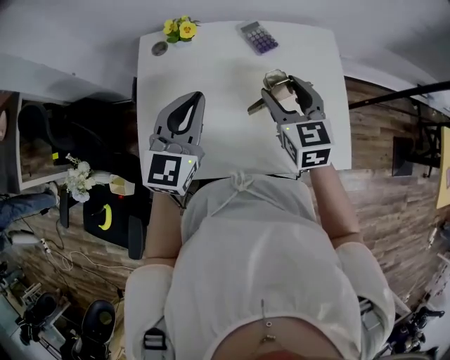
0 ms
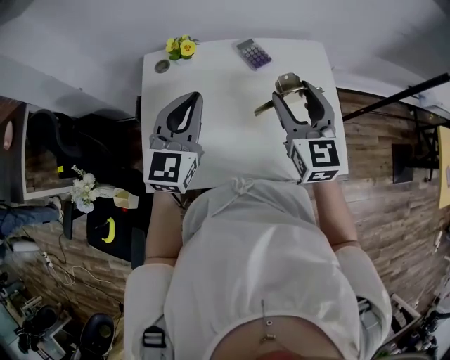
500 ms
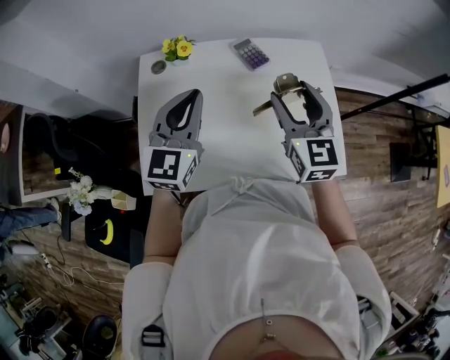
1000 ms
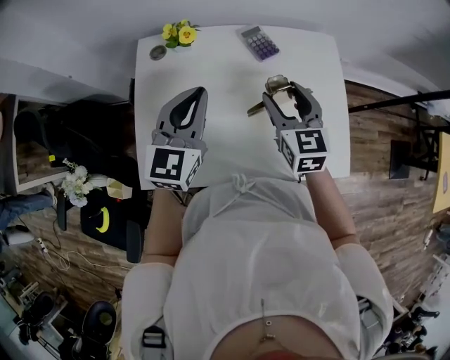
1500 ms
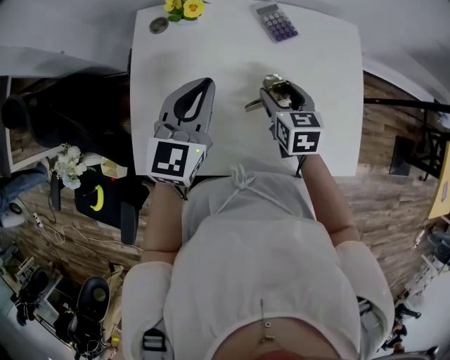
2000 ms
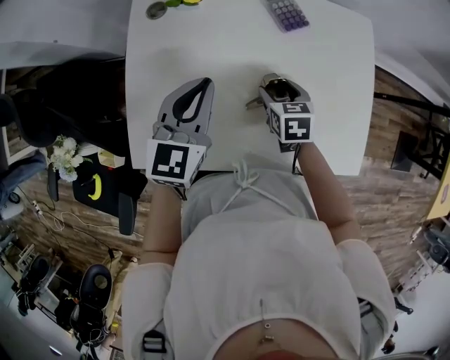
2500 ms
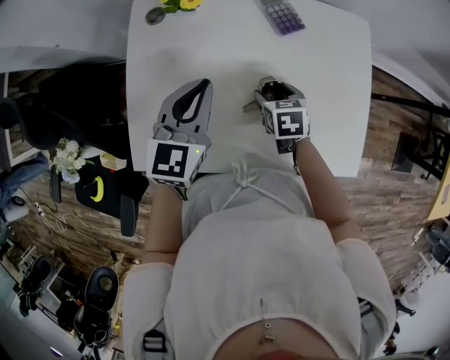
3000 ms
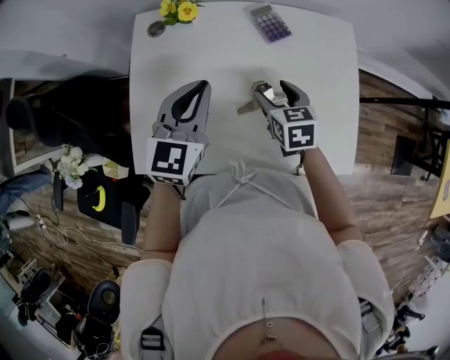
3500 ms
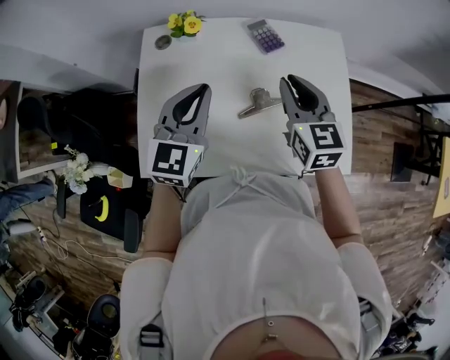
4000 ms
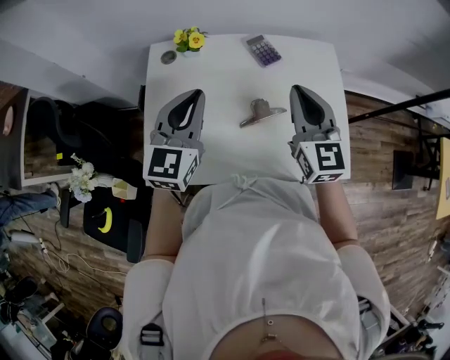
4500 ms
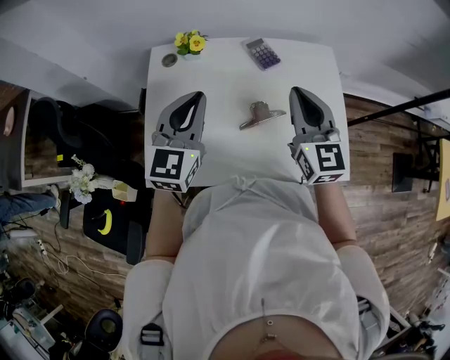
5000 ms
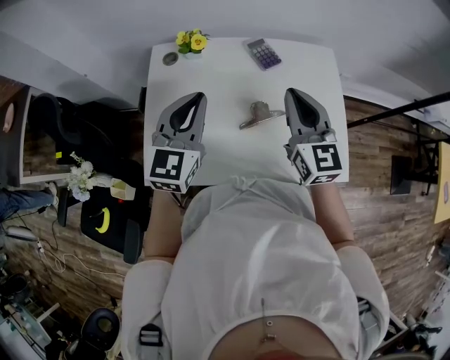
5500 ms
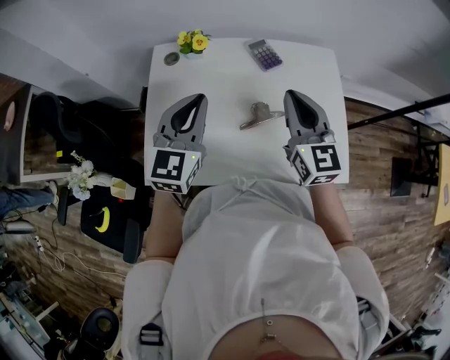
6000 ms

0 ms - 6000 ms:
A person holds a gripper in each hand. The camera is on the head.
0 ms - 2000 ms: The right gripper goes roughly 15 cm downward, and turns by some 20 degrees. The left gripper is displaced downward by approximately 5 cm.
2000 ms - 4000 ms: The right gripper travels upward by about 15 cm, rotates some 20 degrees, and closes. The left gripper ends up approximately 5 cm from where it was.
4000 ms - 6000 ms: The right gripper is displaced upward by roughly 5 cm.

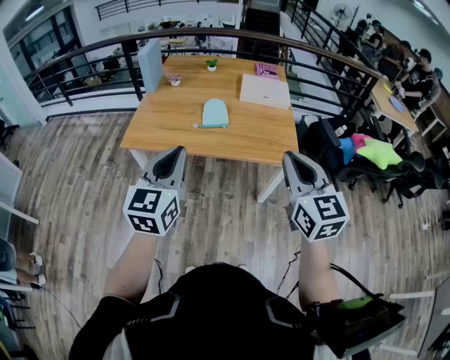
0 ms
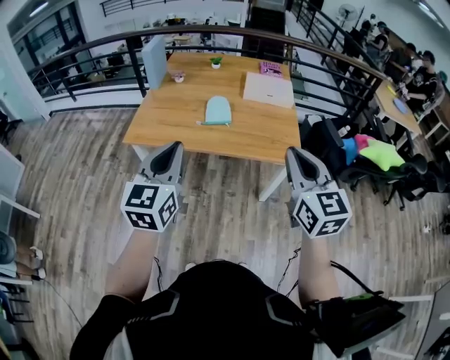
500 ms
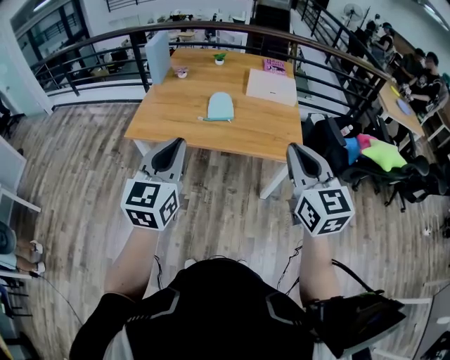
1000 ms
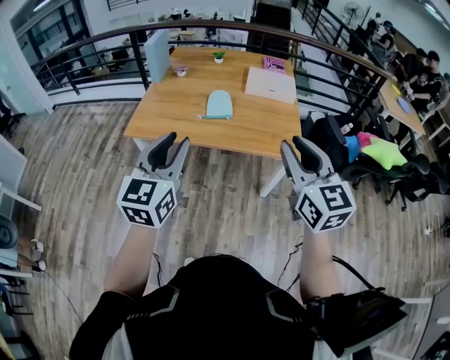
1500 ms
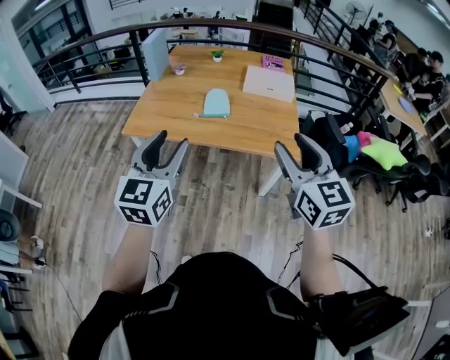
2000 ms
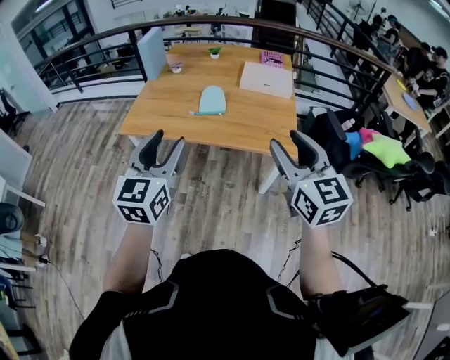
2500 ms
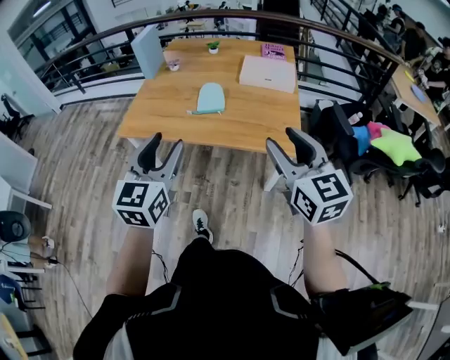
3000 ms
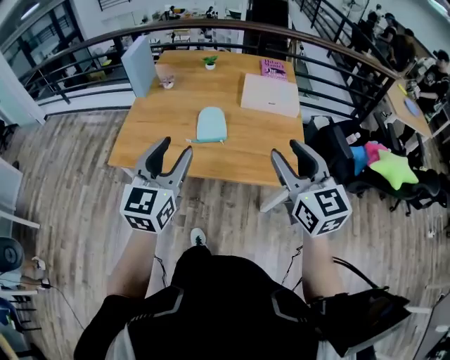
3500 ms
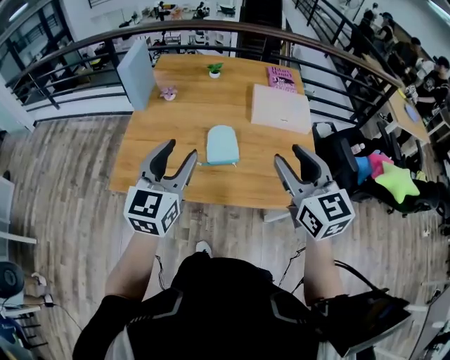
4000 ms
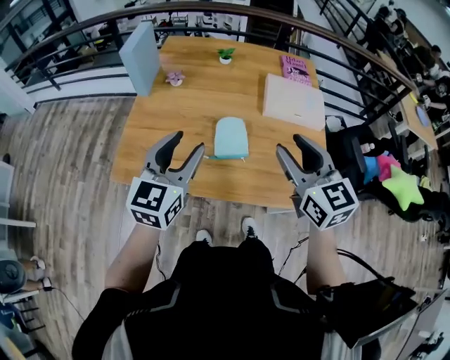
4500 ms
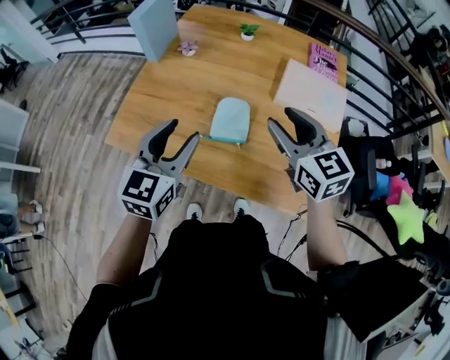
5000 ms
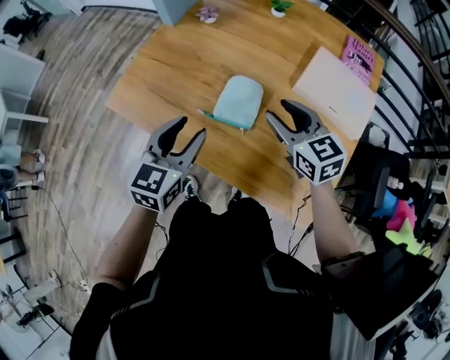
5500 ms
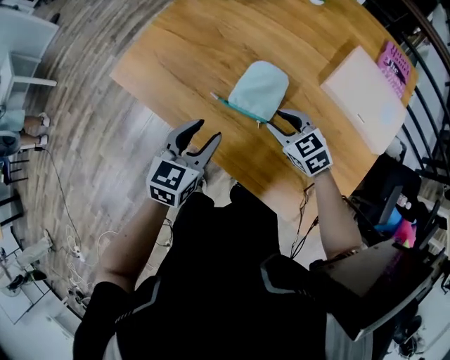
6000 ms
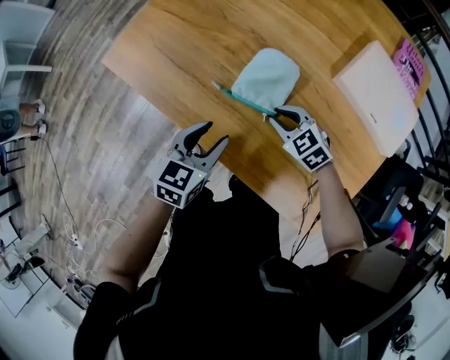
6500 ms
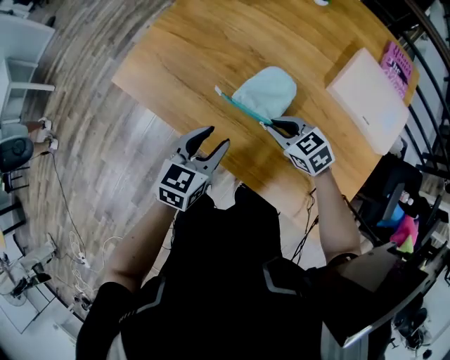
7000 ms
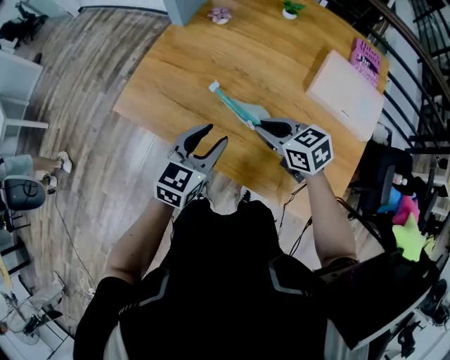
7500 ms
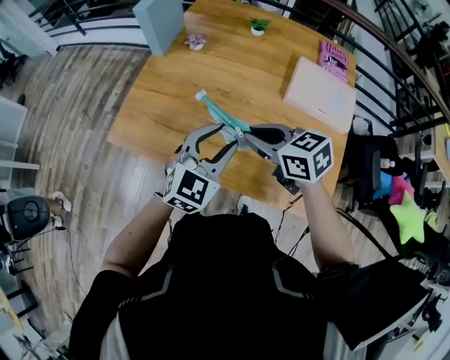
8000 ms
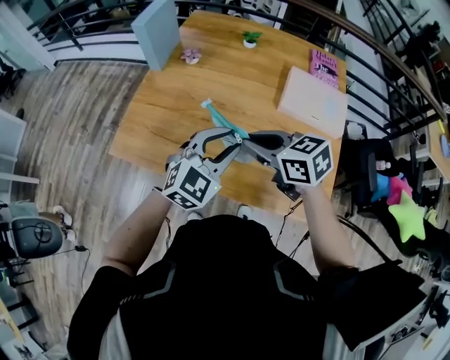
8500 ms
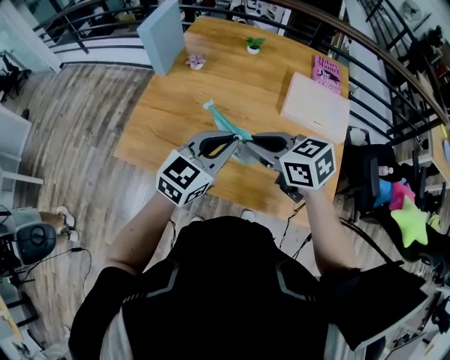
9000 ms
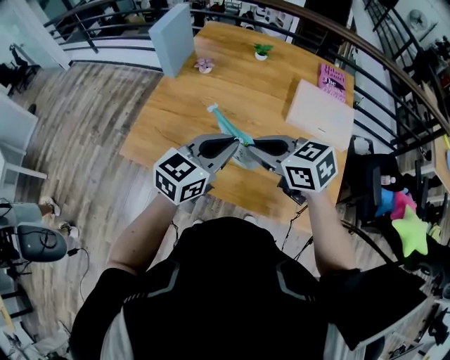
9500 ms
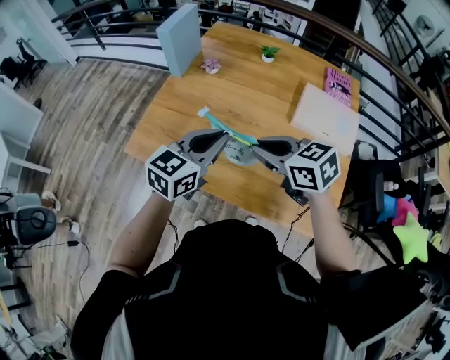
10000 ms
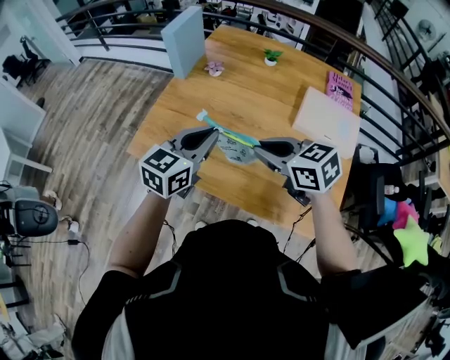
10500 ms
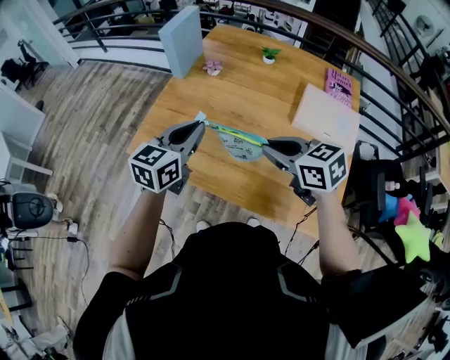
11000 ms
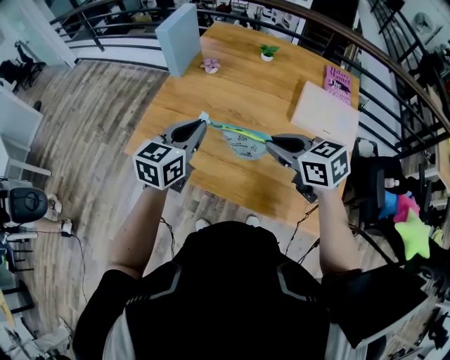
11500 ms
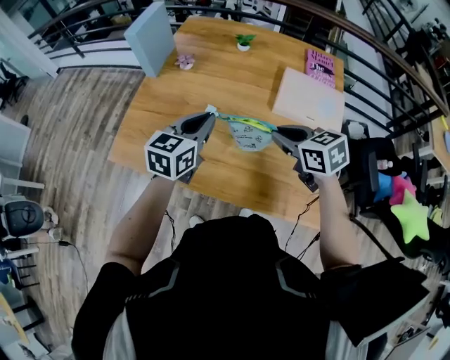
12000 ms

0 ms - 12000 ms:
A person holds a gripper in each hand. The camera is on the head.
0 ms - 2000 ms: The right gripper opens. Meanwhile the left gripper opens.
2000 ms - 4000 ms: Both grippers travel together forward, roughly 30 cm.
4000 ms - 6000 ms: Both grippers travel together downward, roughly 30 cm. The left gripper turns by some 40 degrees. Meanwhile the right gripper swivels about 60 degrees.
6000 ms - 8000 ms: The left gripper is displaced upward by approximately 15 cm, and changes its angle by approximately 40 degrees. Meanwhile the right gripper moves upward, approximately 20 cm, changes its angle by approximately 30 degrees, and closes.
8000 ms - 10000 ms: The left gripper ends up approximately 5 cm from where it was, changes its angle by some 20 degrees, and closes its fingers.
10000 ms - 12000 ms: The right gripper moves to the right, roughly 15 cm. Meanwhile the left gripper shifts approximately 5 cm forward.

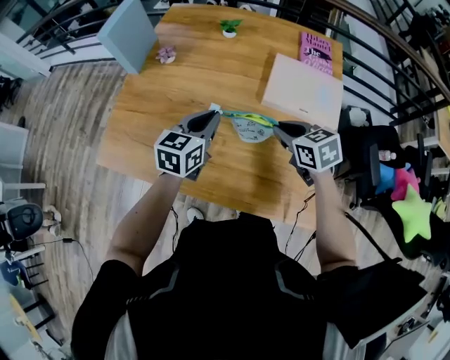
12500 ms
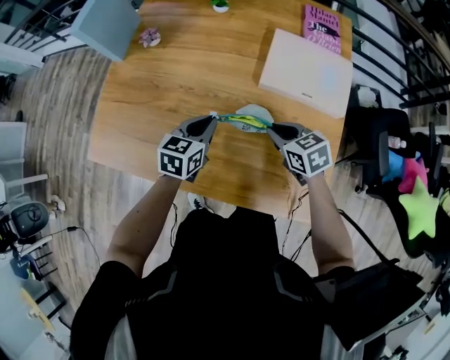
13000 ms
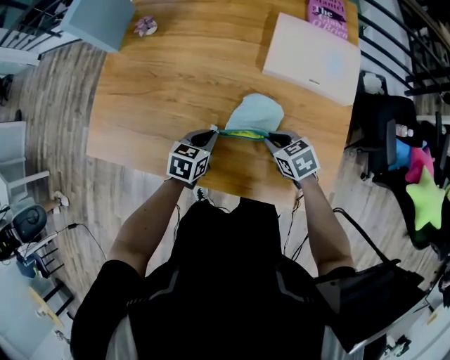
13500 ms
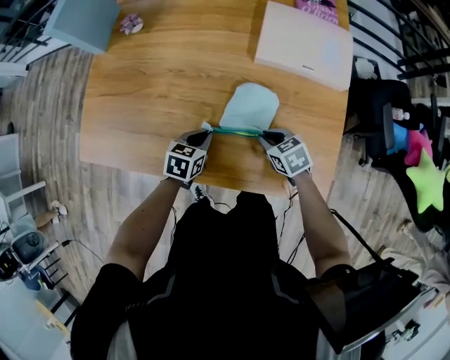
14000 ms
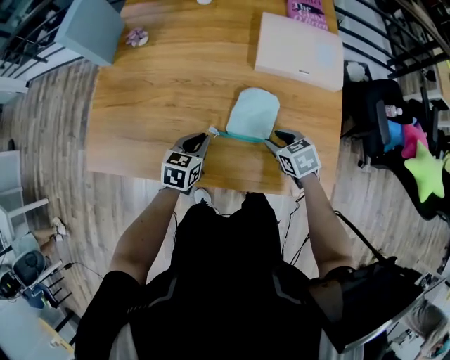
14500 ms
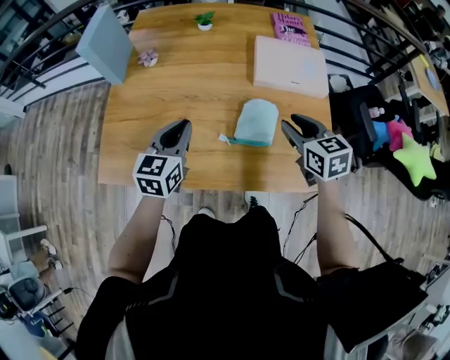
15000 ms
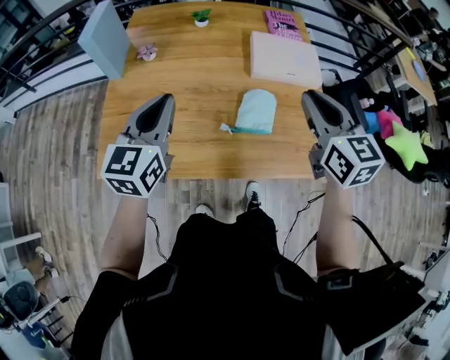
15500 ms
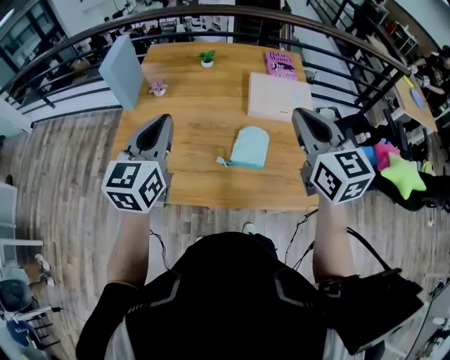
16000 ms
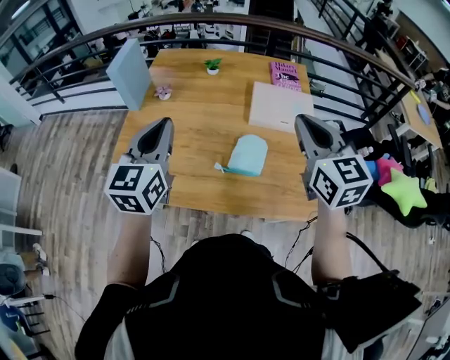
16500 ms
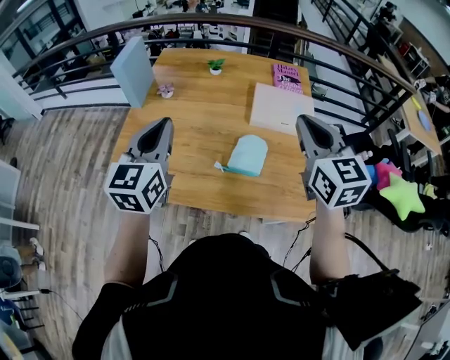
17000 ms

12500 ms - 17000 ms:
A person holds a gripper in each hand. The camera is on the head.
12500 ms - 14500 ms: Both grippers travel together downward and backward, approximately 20 cm. The right gripper opens. The left gripper turns by some 20 degrees.
14500 ms - 17000 ms: The two grippers go roughly 40 cm upward. The right gripper angles its fingers upward, by approximately 50 degrees, and closes up. Meanwhile the left gripper tilts its fingers about 40 degrees upward.

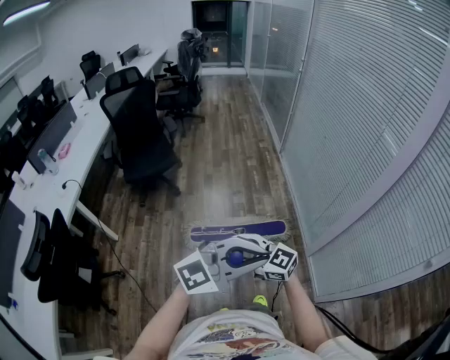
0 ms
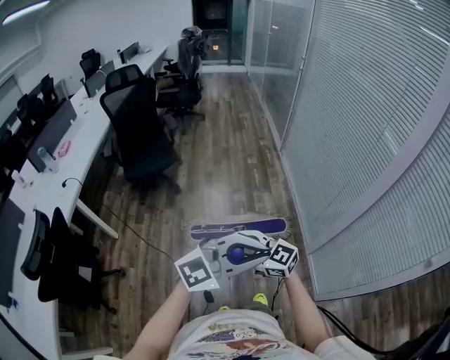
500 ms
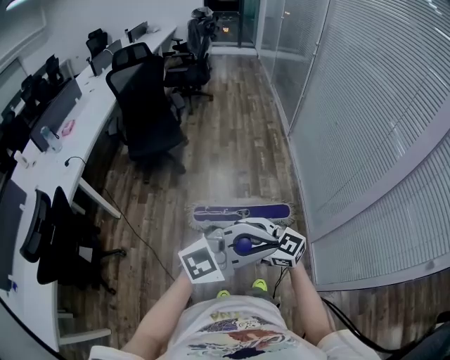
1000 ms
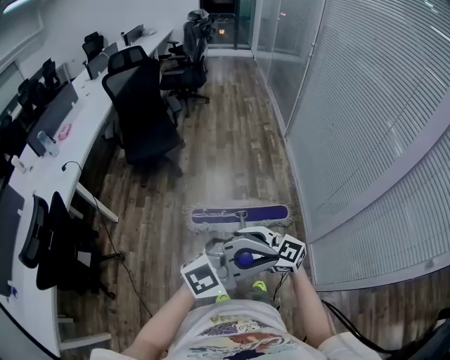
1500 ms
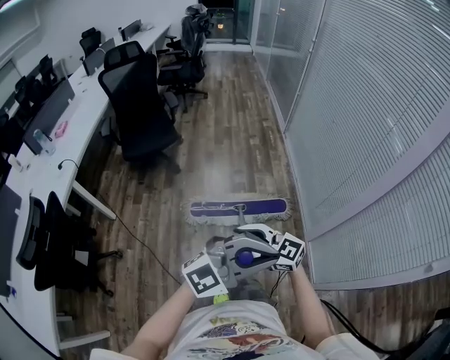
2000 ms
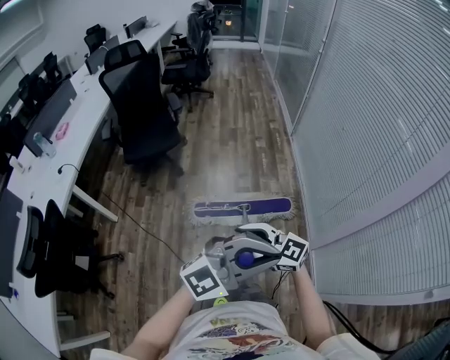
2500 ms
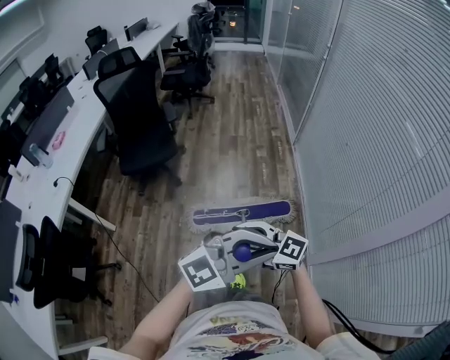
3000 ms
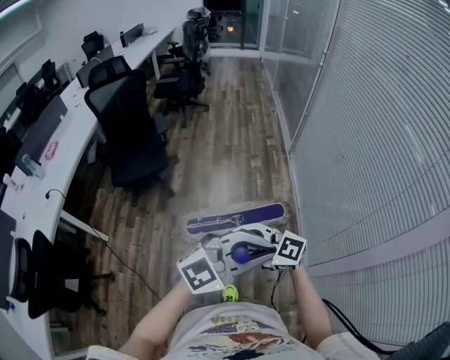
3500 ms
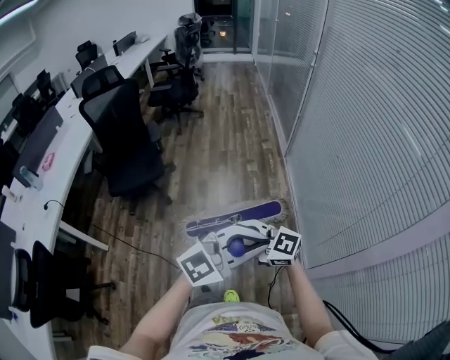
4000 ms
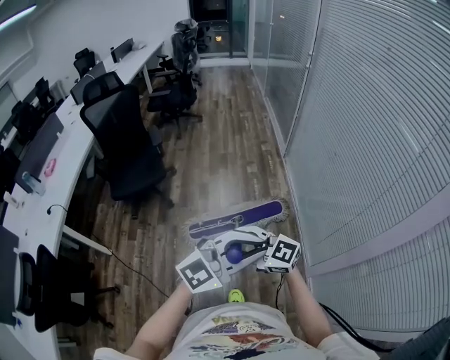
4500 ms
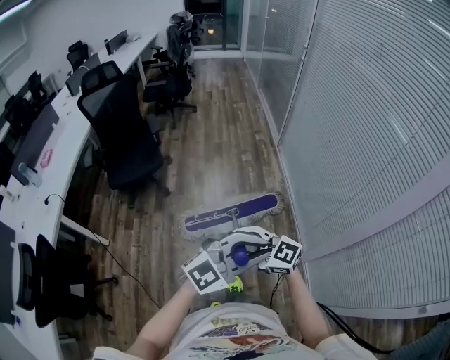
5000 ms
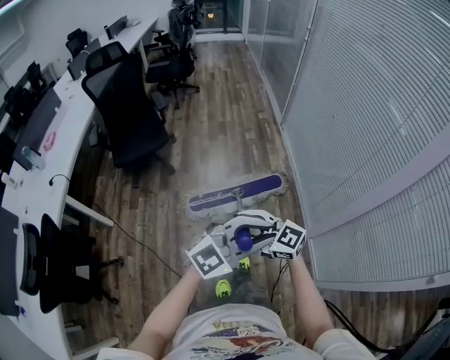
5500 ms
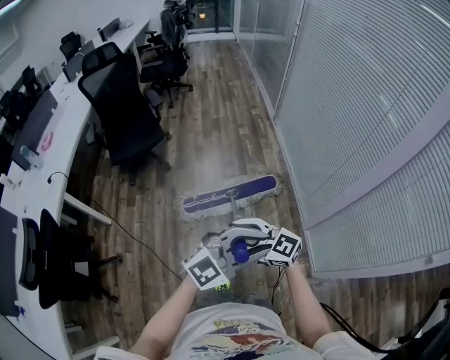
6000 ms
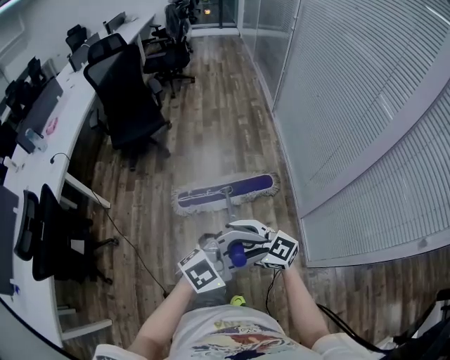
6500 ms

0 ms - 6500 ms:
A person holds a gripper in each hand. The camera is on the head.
0 ms - 2000 ms: The grippers stay close to where they were, moving slightly.
2000 ms - 4500 ms: The left gripper ends up about 35 cm from where it was, while the right gripper moves some 30 cm.
4500 ms - 6500 ms: The right gripper ends up approximately 40 cm from where it was; the left gripper changes place by approximately 40 cm.
